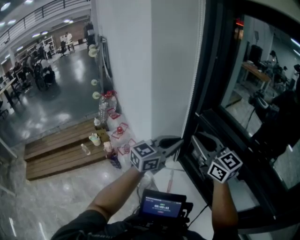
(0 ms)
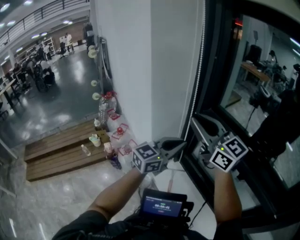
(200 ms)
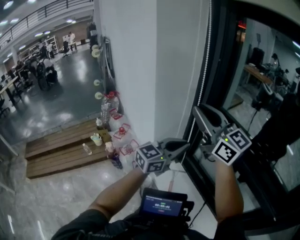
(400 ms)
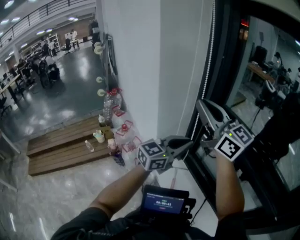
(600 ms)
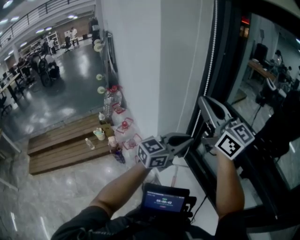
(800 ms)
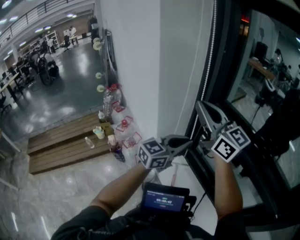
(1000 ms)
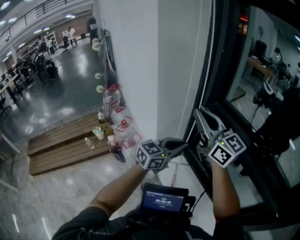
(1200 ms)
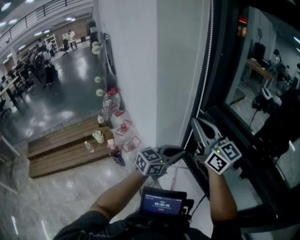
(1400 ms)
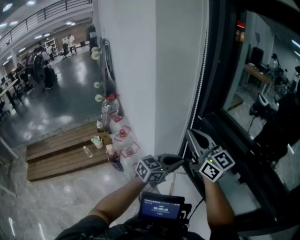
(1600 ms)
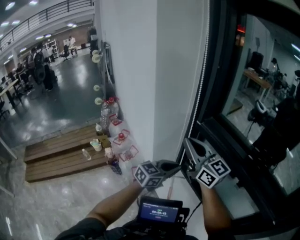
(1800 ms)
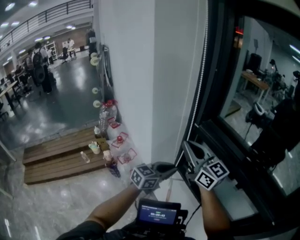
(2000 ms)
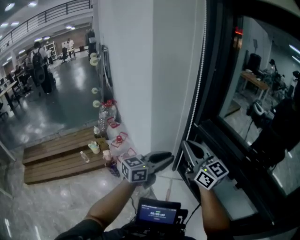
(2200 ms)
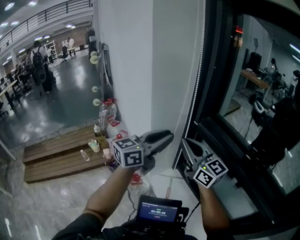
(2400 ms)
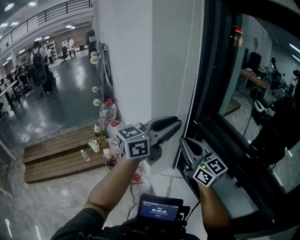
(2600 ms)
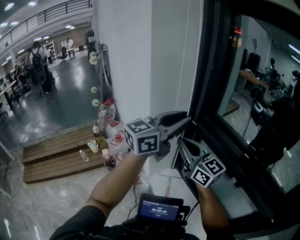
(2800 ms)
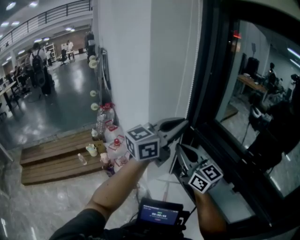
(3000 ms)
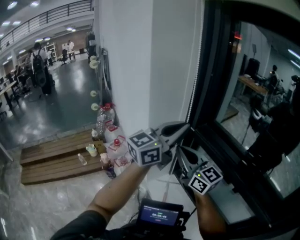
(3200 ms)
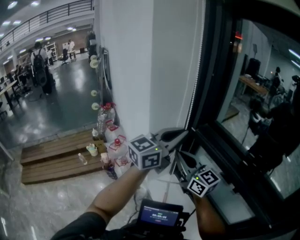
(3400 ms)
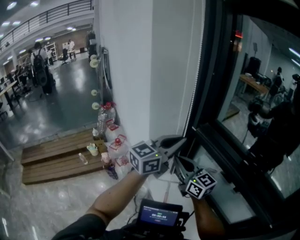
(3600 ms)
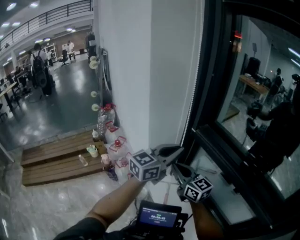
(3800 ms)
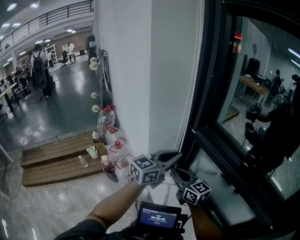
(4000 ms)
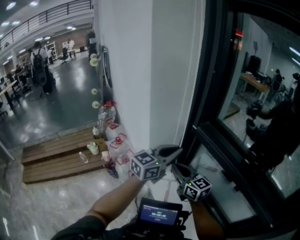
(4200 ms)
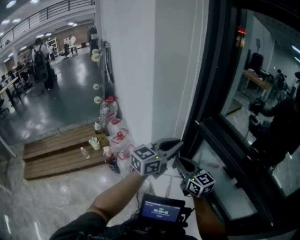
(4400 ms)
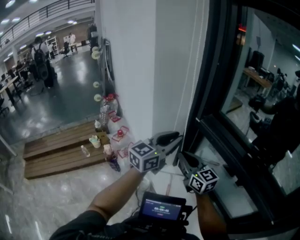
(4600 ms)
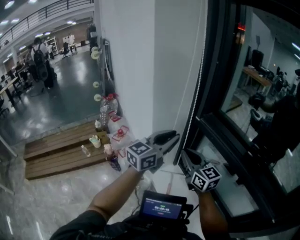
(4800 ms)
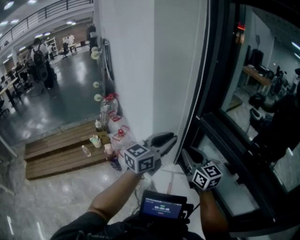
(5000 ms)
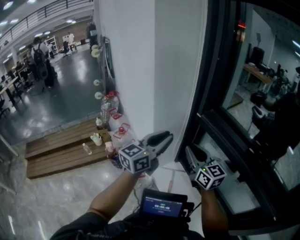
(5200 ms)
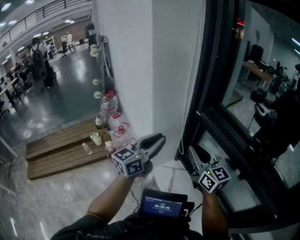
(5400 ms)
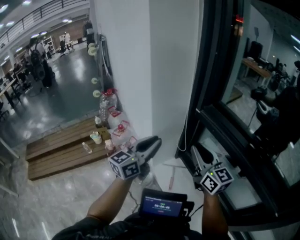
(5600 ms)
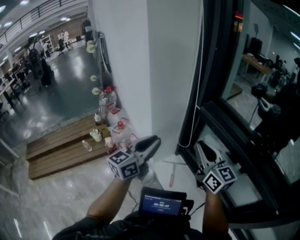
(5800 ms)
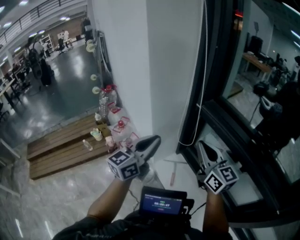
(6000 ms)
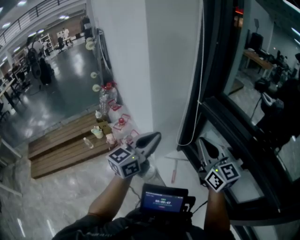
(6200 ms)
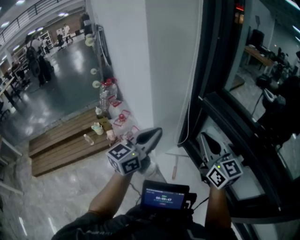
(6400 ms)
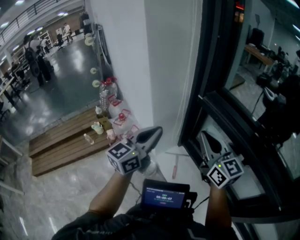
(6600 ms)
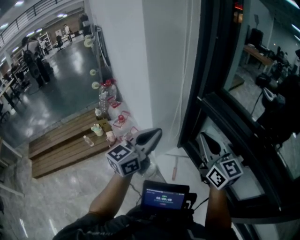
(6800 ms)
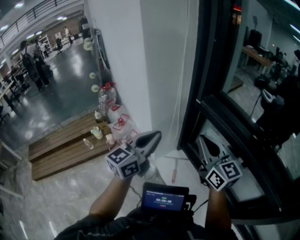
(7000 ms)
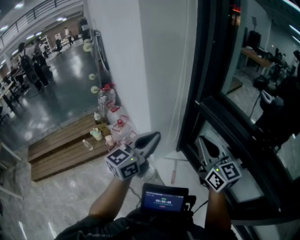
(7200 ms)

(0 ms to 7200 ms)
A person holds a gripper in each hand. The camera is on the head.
0 ms - 1400 ms: The left gripper goes roughly 5 cm downward.
1400 ms - 2800 ms: The left gripper goes about 25 cm upward, and opens.
2800 ms - 4400 ms: The grippers both shift downward by roughly 15 cm. The left gripper closes.
4400 ms - 5800 ms: The left gripper goes roughly 10 cm to the left. The right gripper travels upward and to the right by roughly 10 cm.
5800 ms - 7200 ms: The grippers stay close to where they were, moving slightly.

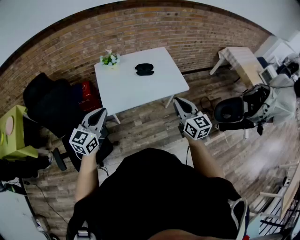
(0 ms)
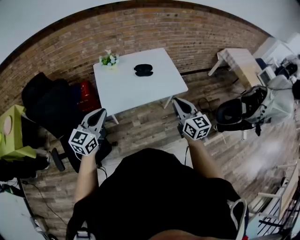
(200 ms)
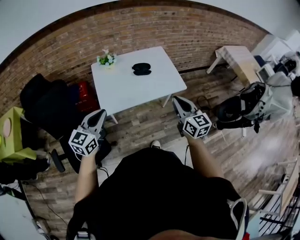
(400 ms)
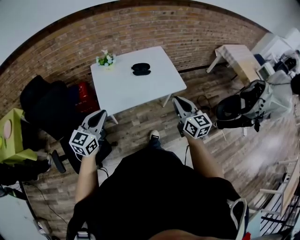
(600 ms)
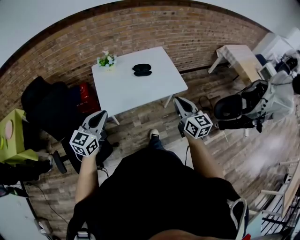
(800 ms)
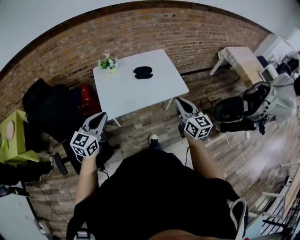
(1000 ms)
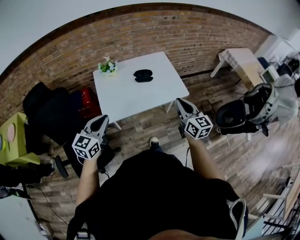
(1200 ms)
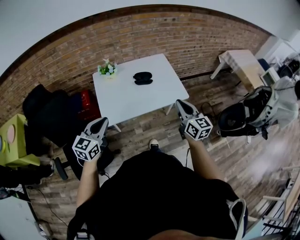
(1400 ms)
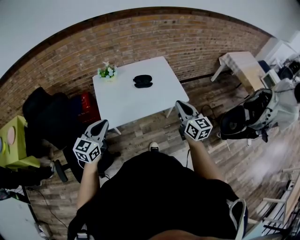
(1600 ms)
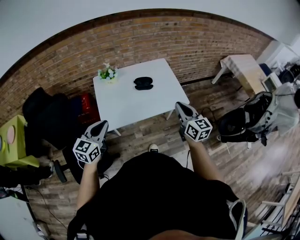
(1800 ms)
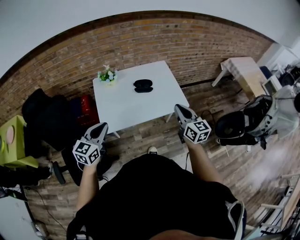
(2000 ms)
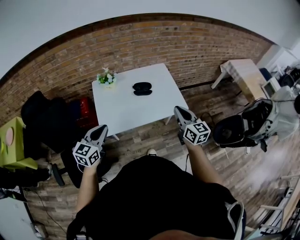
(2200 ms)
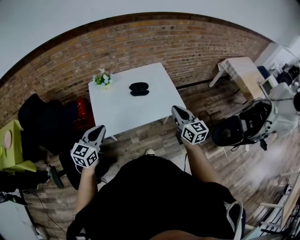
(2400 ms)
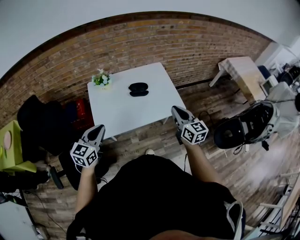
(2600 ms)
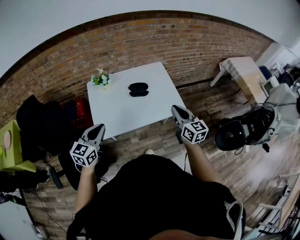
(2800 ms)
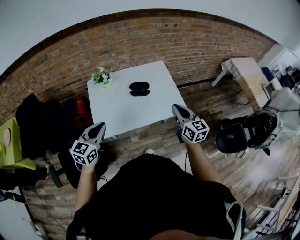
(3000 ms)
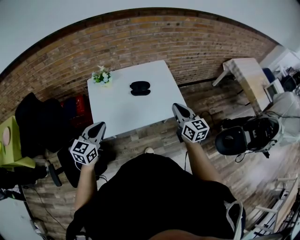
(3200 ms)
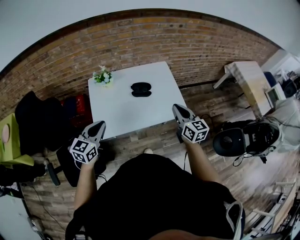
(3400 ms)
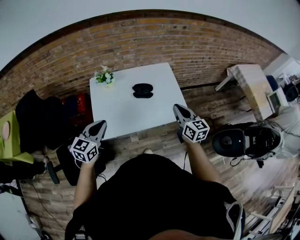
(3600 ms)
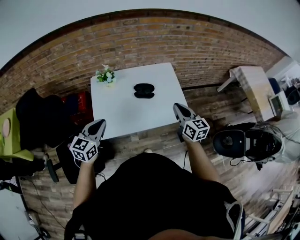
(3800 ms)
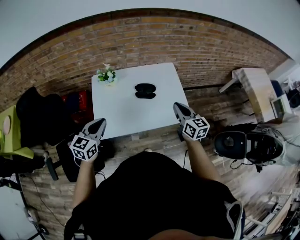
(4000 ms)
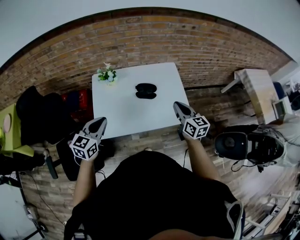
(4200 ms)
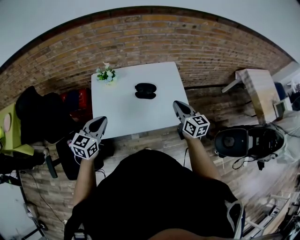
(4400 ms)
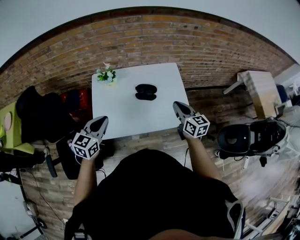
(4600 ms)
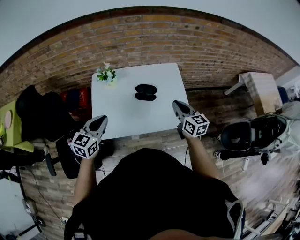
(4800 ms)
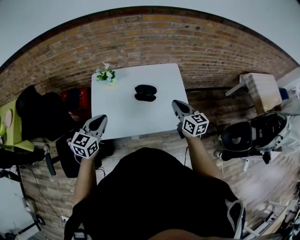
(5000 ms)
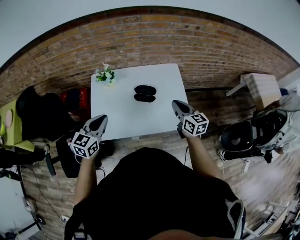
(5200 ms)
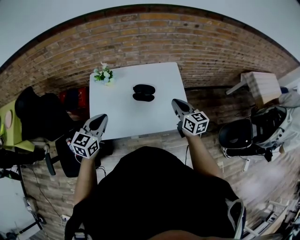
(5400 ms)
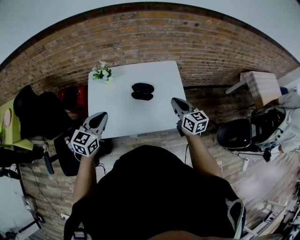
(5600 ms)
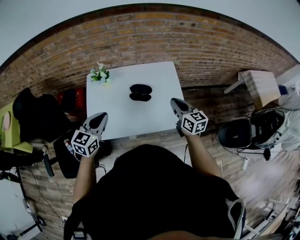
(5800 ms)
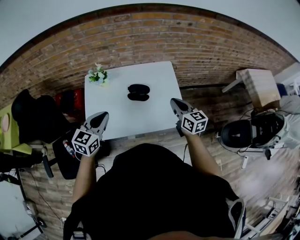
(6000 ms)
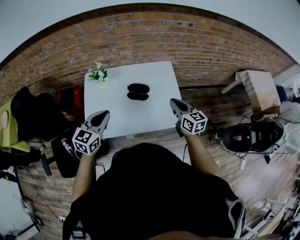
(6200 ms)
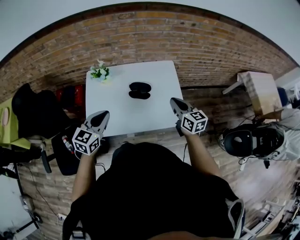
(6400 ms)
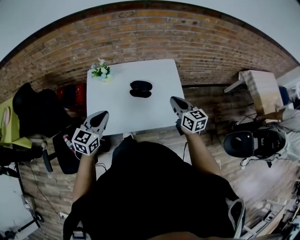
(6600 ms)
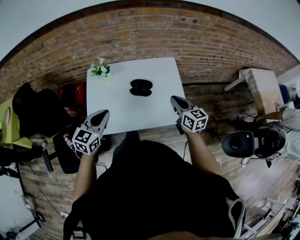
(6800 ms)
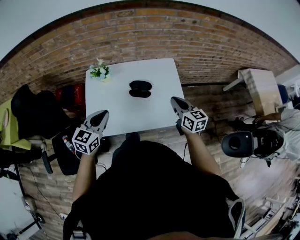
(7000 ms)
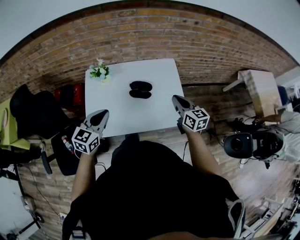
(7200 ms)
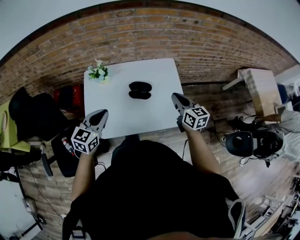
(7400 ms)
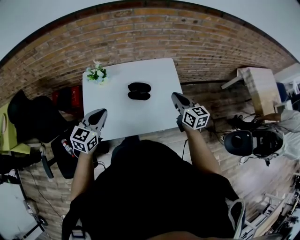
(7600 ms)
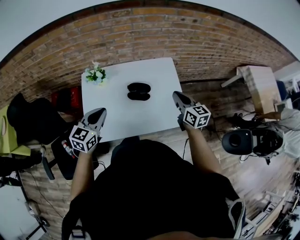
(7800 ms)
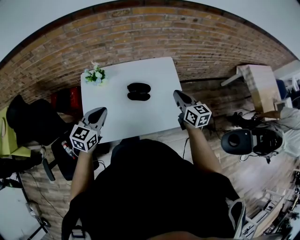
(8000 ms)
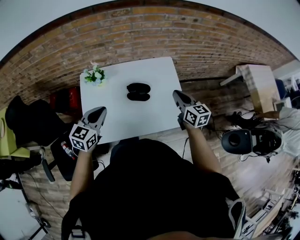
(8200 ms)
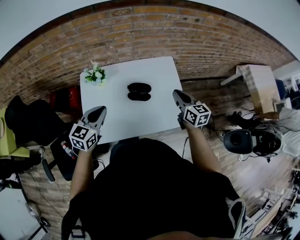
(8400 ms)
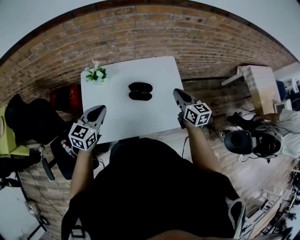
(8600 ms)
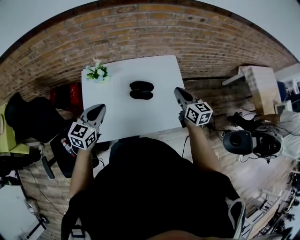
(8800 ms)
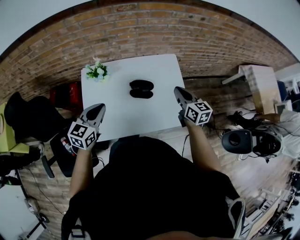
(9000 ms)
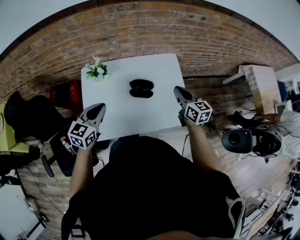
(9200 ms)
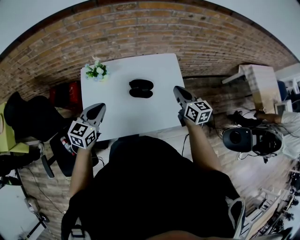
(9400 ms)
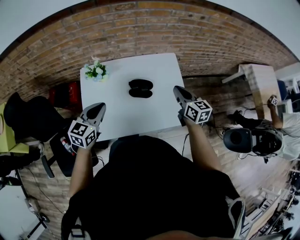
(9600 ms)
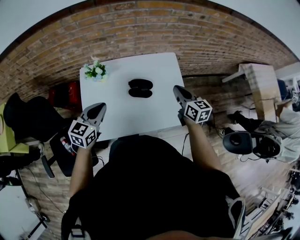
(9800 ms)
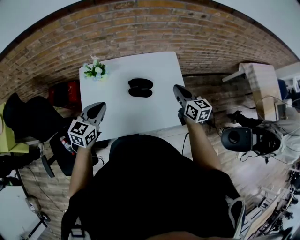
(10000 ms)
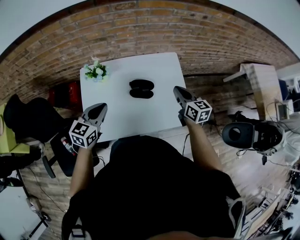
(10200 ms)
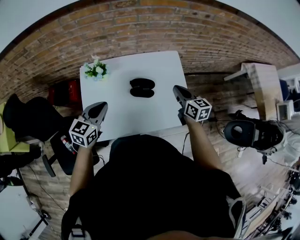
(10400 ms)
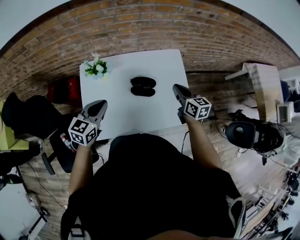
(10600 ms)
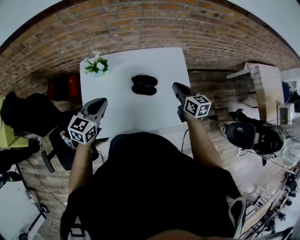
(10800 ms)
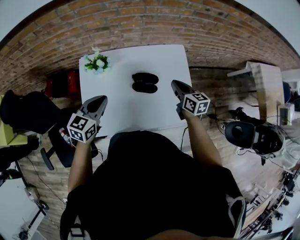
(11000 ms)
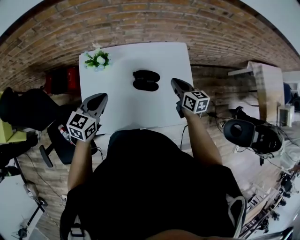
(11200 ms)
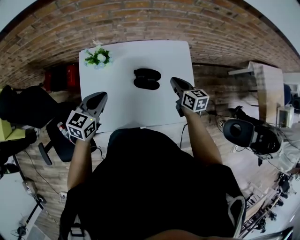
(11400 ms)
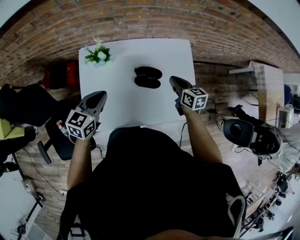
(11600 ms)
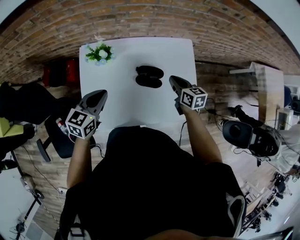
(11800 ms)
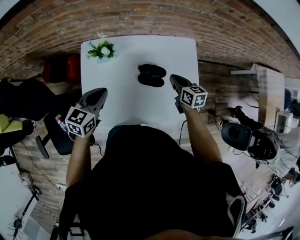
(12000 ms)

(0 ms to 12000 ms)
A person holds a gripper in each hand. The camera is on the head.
0 ms - 1600 ms: The right gripper is displaced forward by roughly 10 cm; the left gripper travels forward by about 5 cm.
1600 ms - 3000 ms: The two grippers go roughly 10 cm forward.
3000 ms - 4400 ms: Both grippers travel together forward, about 10 cm.
4400 ms - 6000 ms: The left gripper shifts roughly 10 cm to the right. Meanwhile the right gripper travels to the right by some 5 cm.
6000 ms - 7600 ms: The left gripper ends up roughly 5 cm from where it was. The right gripper shifts by some 5 cm.
7600 ms - 9000 ms: The left gripper shifts by some 5 cm.
9000 ms - 10400 ms: The grippers move only a little.
10400 ms - 12000 ms: The right gripper is displaced downward, to the left and forward by roughly 15 cm. The left gripper shifts roughly 5 cm downward.

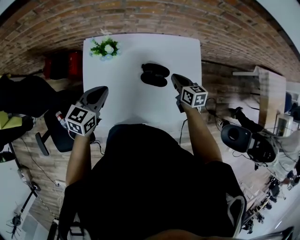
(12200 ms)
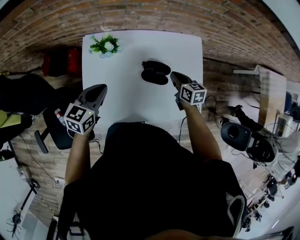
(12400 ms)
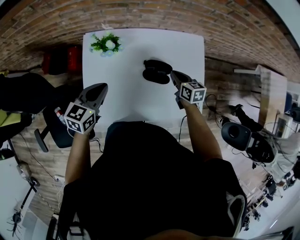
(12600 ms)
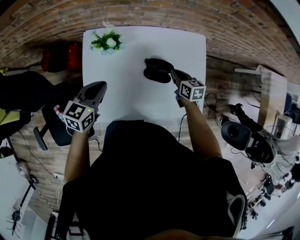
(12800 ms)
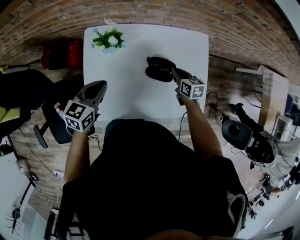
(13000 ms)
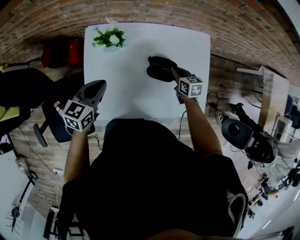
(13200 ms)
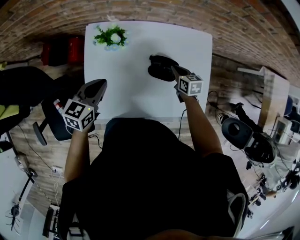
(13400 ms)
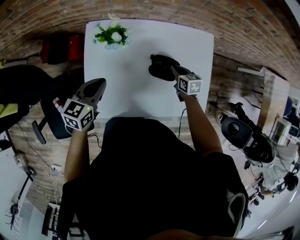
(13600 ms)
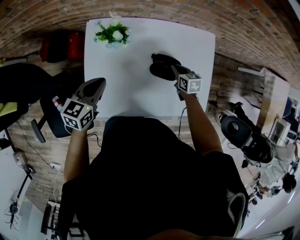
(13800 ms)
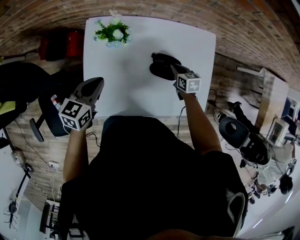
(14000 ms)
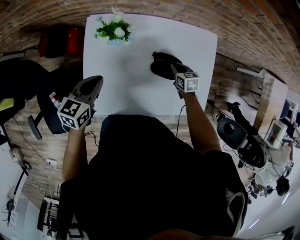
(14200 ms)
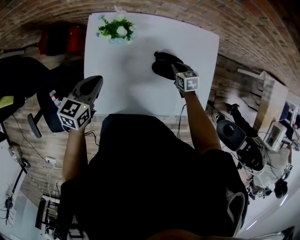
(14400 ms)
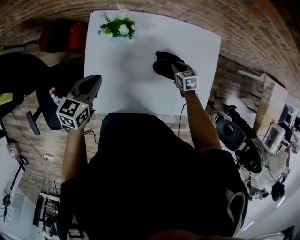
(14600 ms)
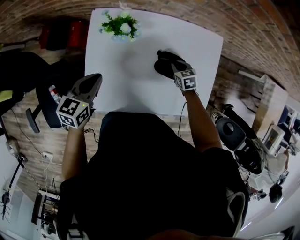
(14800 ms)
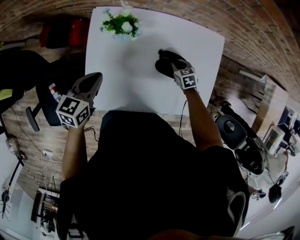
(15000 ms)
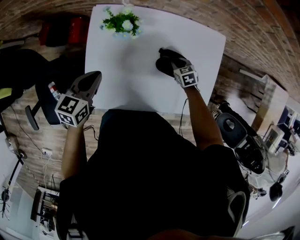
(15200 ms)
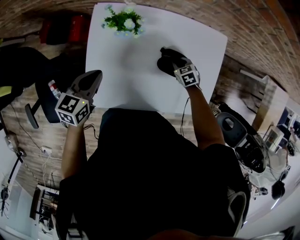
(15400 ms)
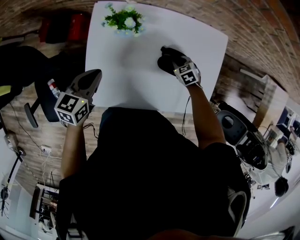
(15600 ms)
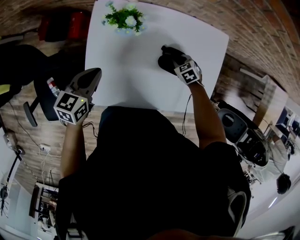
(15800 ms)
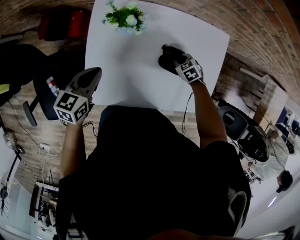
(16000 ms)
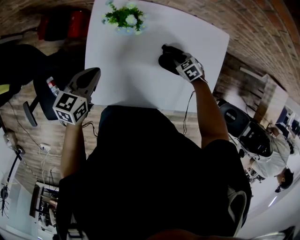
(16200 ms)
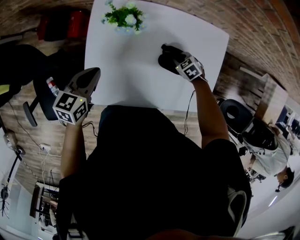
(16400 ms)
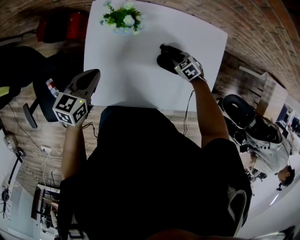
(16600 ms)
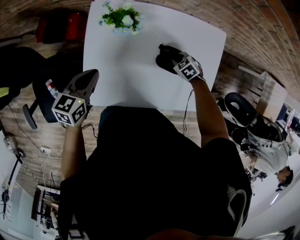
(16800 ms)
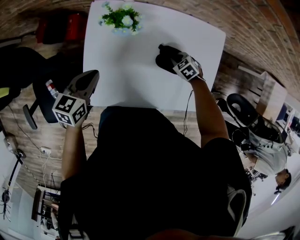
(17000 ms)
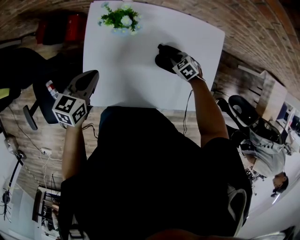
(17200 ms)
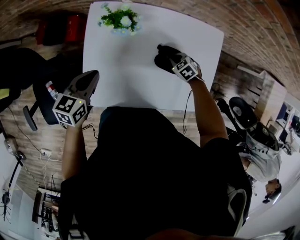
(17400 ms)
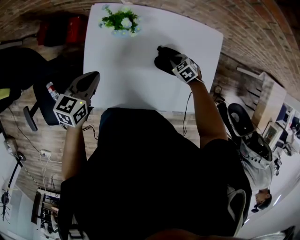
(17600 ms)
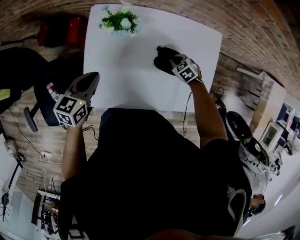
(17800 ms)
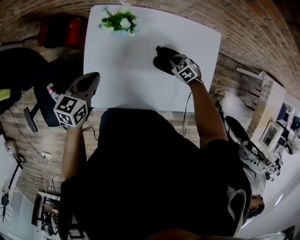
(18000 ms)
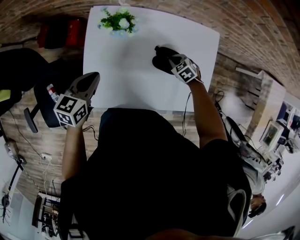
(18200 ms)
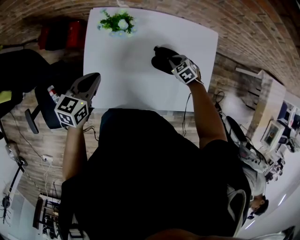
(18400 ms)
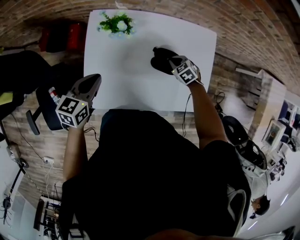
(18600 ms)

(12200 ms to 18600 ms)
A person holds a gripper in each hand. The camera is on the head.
12200 ms - 13800 ms: The left gripper travels to the left by roughly 5 cm, while the right gripper moves downward, about 10 cm.
13800 ms - 15400 ms: The right gripper shifts some 10 cm downward, and changes its angle by roughly 30 degrees.
15400 ms - 18600 ms: The grippers move only a little.
